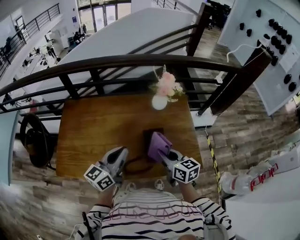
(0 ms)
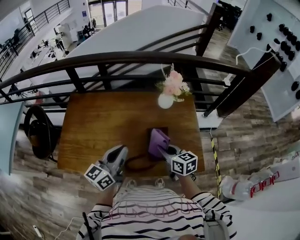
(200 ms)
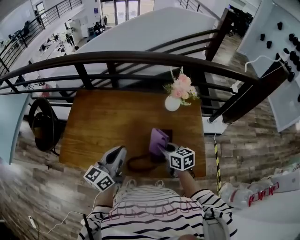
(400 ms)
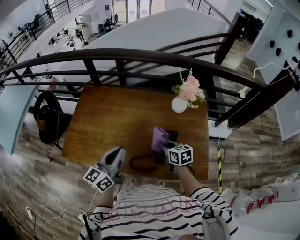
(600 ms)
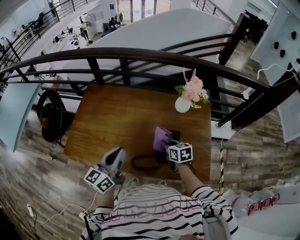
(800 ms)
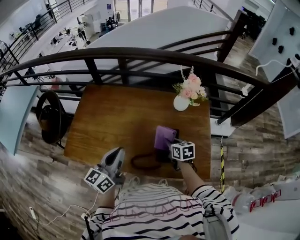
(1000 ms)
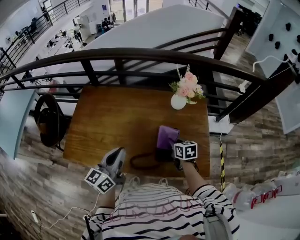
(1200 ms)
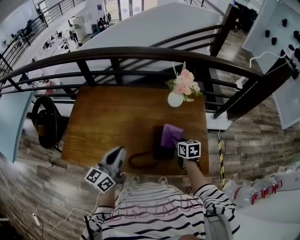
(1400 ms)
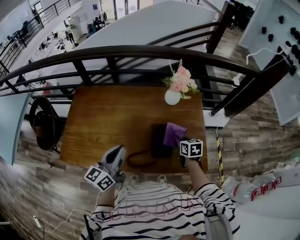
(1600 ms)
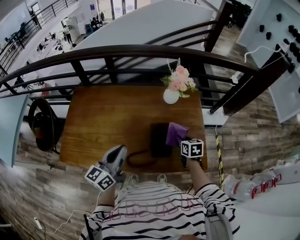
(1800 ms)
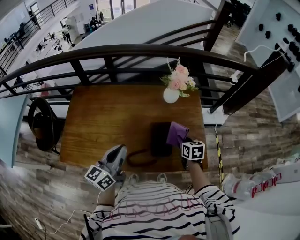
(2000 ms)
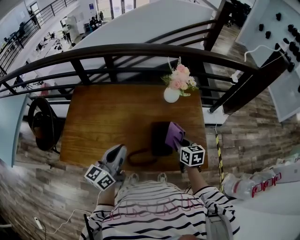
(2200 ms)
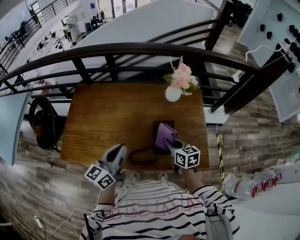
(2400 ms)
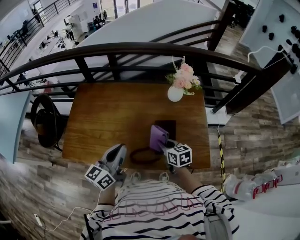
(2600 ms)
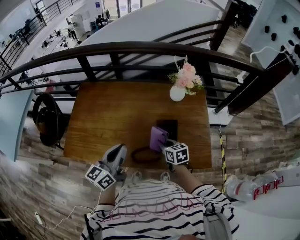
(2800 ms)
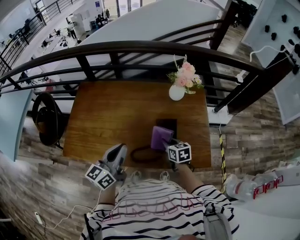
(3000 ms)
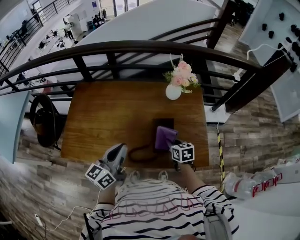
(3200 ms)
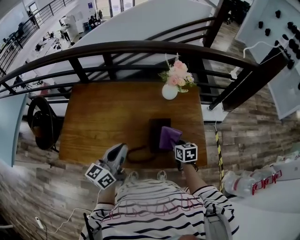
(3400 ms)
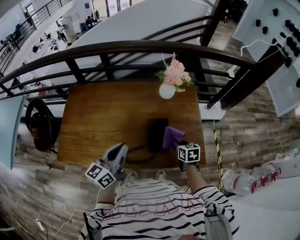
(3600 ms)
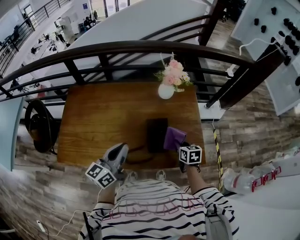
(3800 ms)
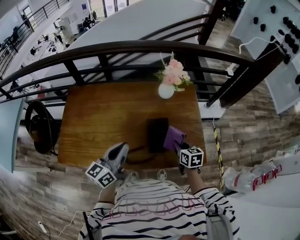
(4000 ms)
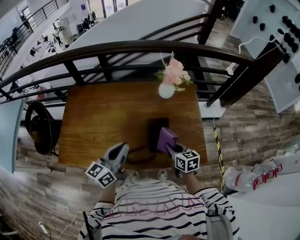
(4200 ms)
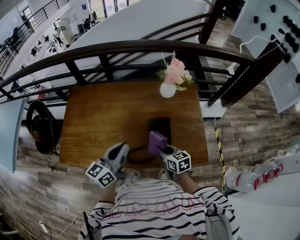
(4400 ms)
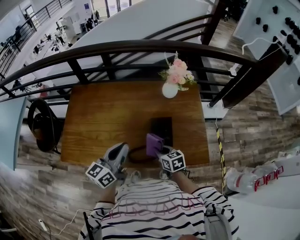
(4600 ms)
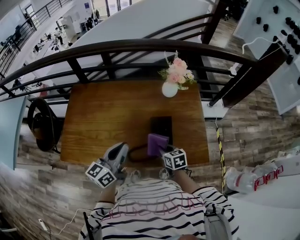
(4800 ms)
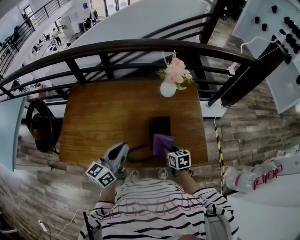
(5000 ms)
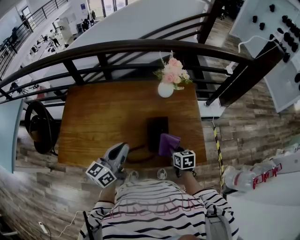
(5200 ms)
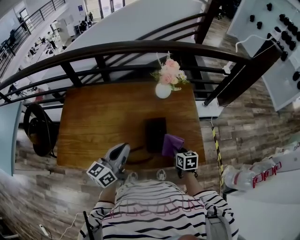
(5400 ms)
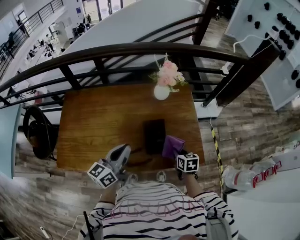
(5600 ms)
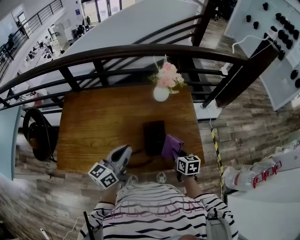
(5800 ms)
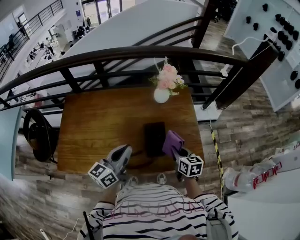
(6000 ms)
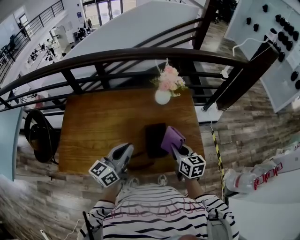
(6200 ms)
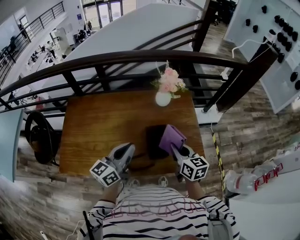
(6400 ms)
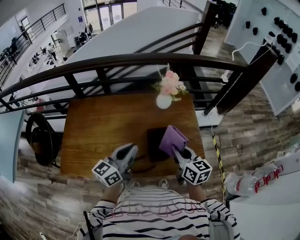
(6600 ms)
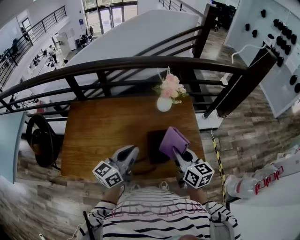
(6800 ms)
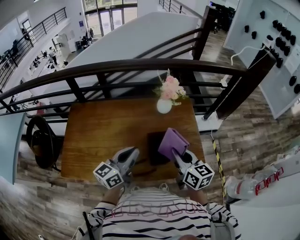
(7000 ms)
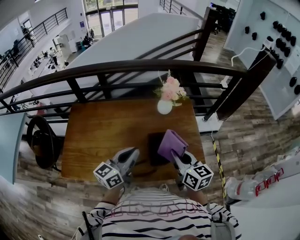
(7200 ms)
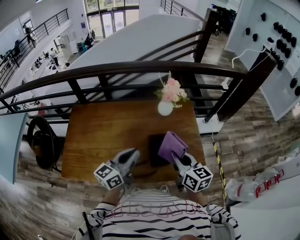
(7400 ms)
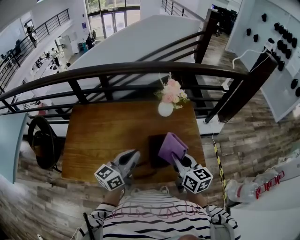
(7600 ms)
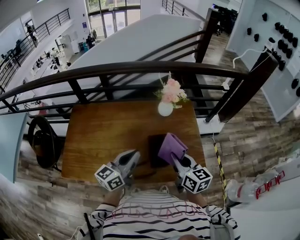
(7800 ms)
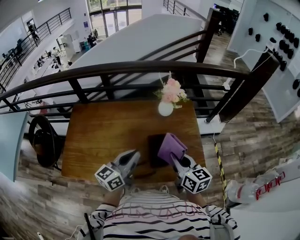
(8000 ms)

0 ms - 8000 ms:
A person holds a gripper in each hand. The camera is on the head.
0 ms - 1600 ms: The right gripper is displaced downward, to the right and forward by about 15 cm, and swivels approximately 20 degrees.
1600 ms - 3200 ms: The right gripper shifts approximately 5 cm to the left.
3200 ms - 4800 ms: The right gripper travels to the right and back again, roughly 10 cm each way.
4800 ms - 6400 ms: The right gripper shifts about 15 cm upward and to the right, and turns by roughly 30 degrees. The left gripper shifts by about 5 cm.
6400 ms - 8000 ms: The right gripper moves upward, approximately 5 cm.

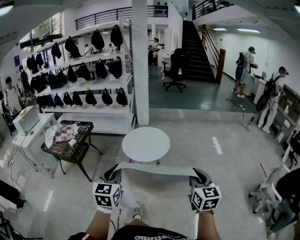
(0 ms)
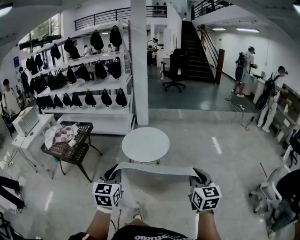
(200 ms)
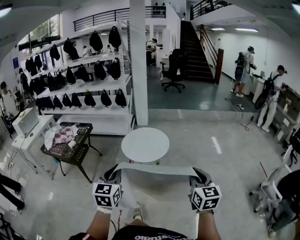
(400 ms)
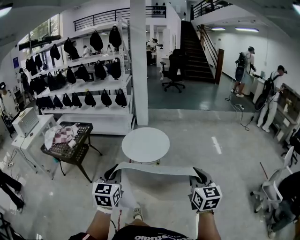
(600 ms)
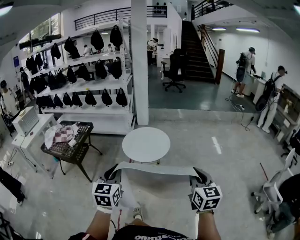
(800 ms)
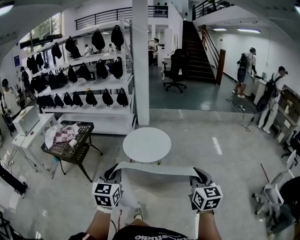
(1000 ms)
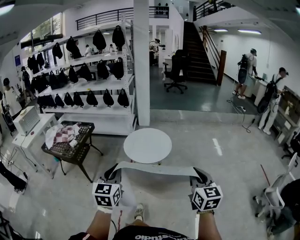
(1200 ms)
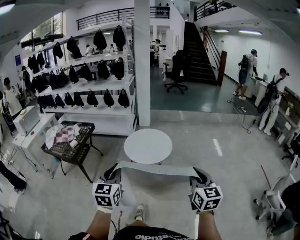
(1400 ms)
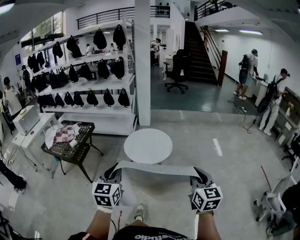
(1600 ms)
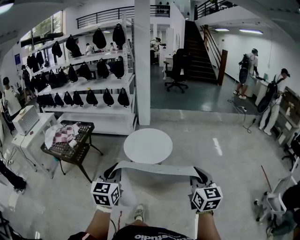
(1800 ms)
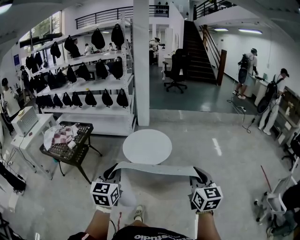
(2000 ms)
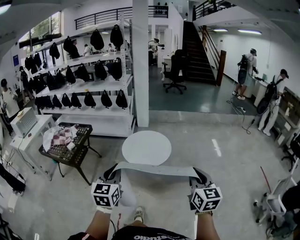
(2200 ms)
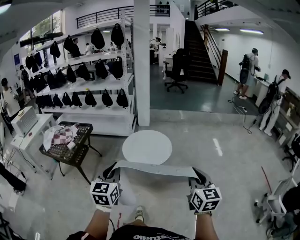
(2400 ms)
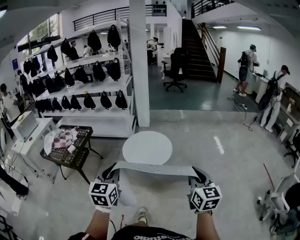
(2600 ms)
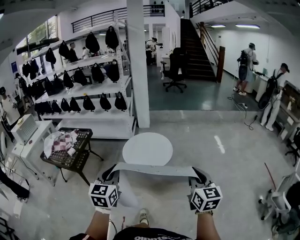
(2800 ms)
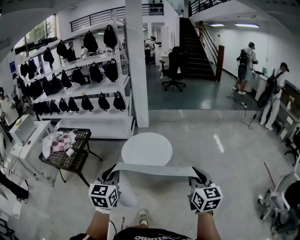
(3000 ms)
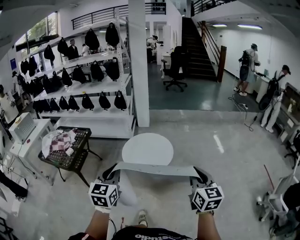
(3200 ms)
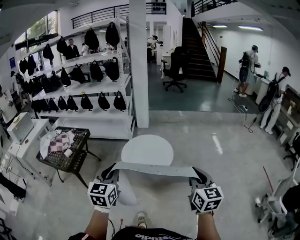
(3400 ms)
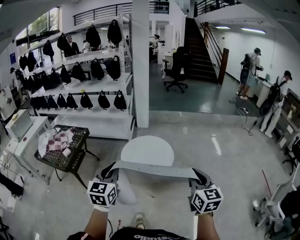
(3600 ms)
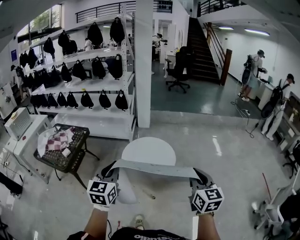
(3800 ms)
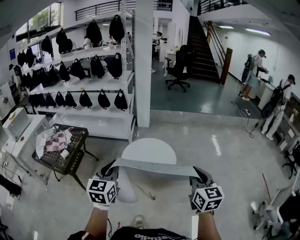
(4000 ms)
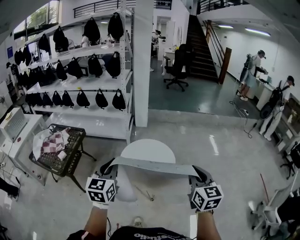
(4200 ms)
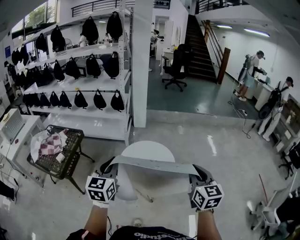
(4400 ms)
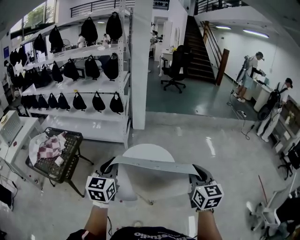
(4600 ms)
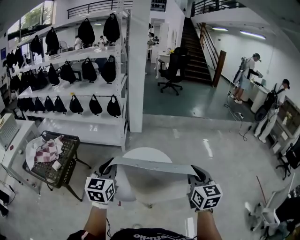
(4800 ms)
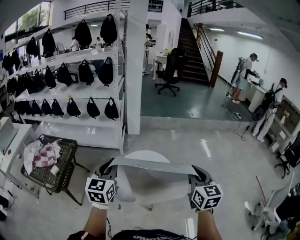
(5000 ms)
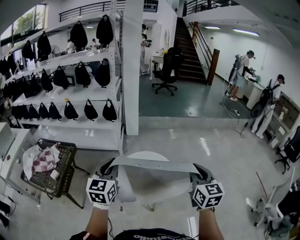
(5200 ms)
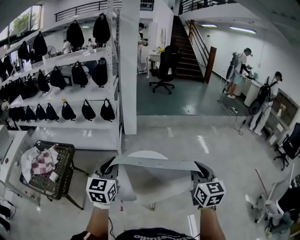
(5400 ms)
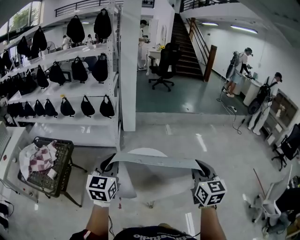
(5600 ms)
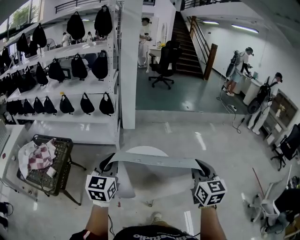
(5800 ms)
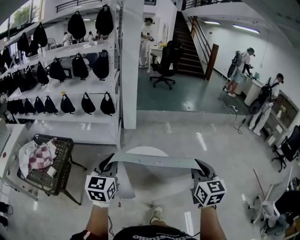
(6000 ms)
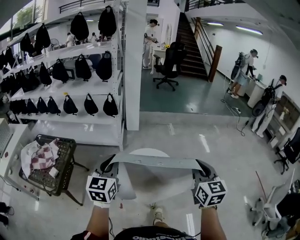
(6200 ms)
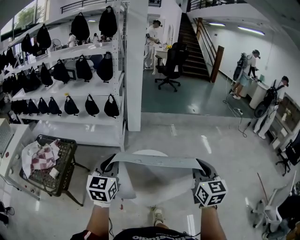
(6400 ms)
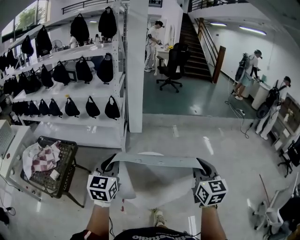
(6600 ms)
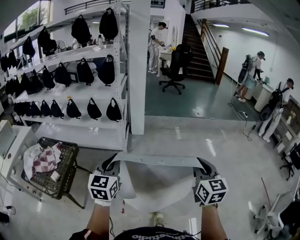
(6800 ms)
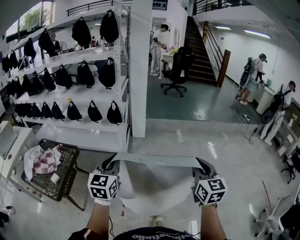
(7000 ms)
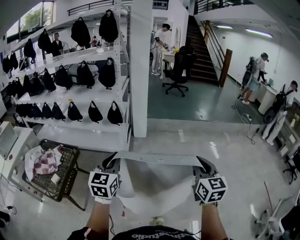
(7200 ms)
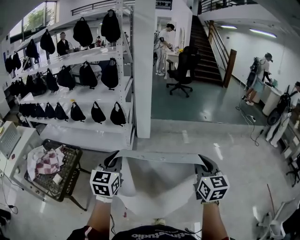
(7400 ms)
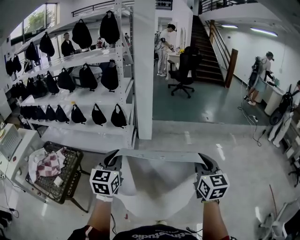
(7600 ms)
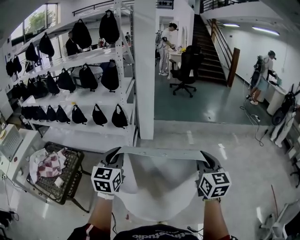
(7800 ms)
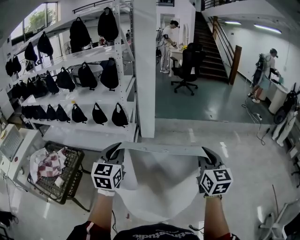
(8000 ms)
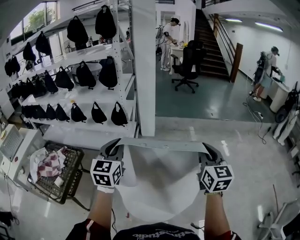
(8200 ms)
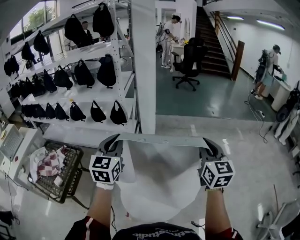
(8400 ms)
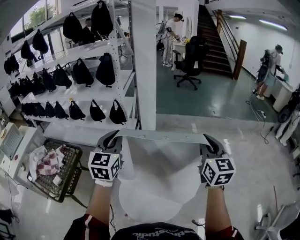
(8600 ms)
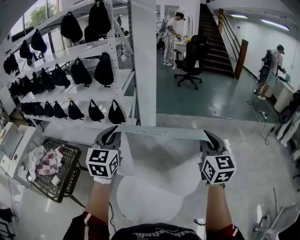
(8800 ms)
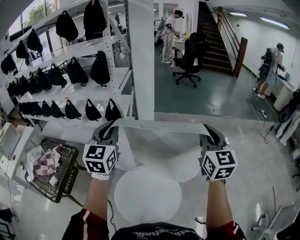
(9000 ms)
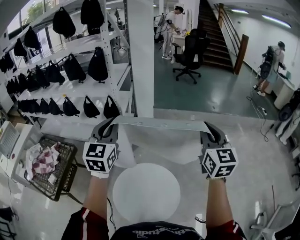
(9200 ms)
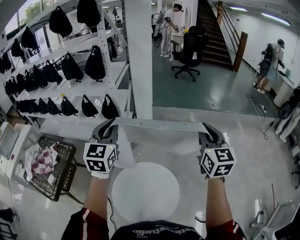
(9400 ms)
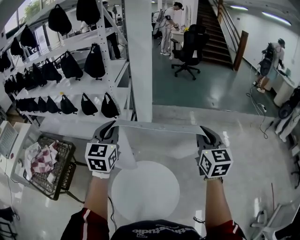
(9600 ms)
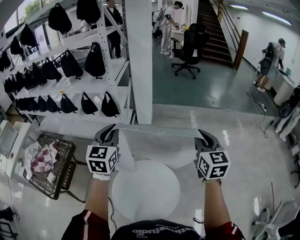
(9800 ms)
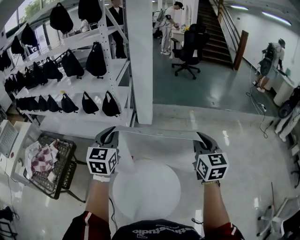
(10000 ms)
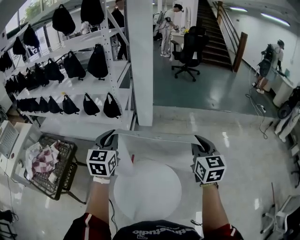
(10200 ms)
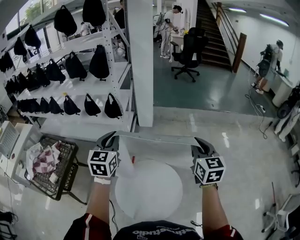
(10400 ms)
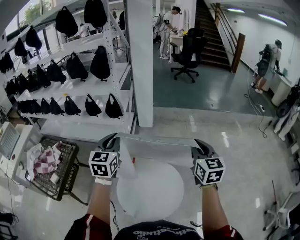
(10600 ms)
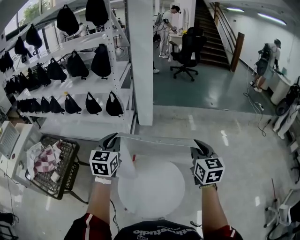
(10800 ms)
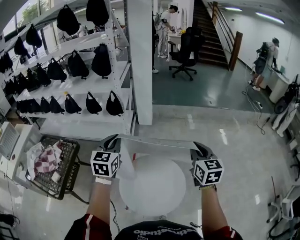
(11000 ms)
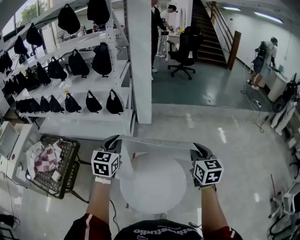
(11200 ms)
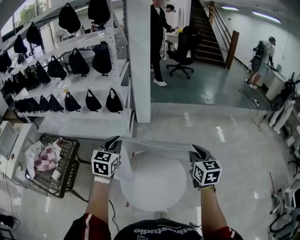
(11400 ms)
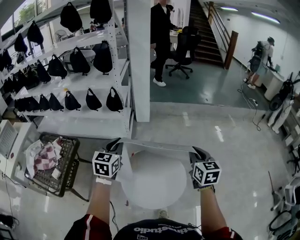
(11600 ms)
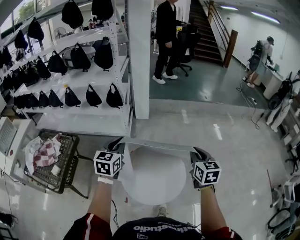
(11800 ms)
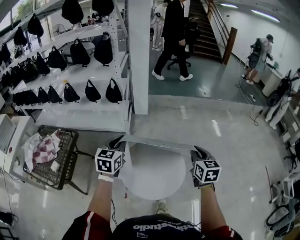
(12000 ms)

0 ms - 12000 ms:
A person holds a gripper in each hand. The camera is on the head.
0 ms - 1600 ms: The grippers stay close to where they were, moving slightly.
1600 ms - 3000 ms: The two grippers go about 10 cm forward.
3000 ms - 4400 ms: Both grippers travel together forward, some 25 cm.
4400 ms - 6000 ms: Both grippers travel together forward, approximately 10 cm.
6000 ms - 7600 ms: The grippers both shift forward by about 20 cm.
7600 ms - 9000 ms: The right gripper goes roughly 20 cm forward. Meanwhile the left gripper moves forward and upward, roughly 20 cm.
9000 ms - 10400 ms: The grippers both shift downward by roughly 10 cm.
10400 ms - 12000 ms: Both grippers travel together backward and downward, about 20 cm.

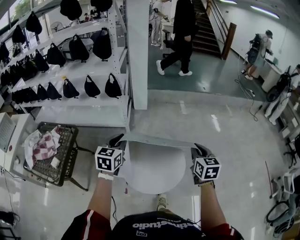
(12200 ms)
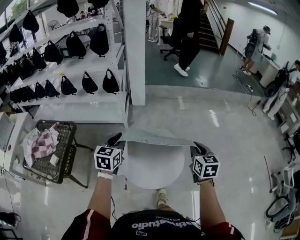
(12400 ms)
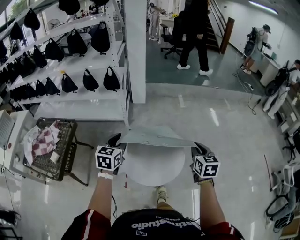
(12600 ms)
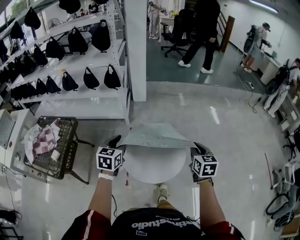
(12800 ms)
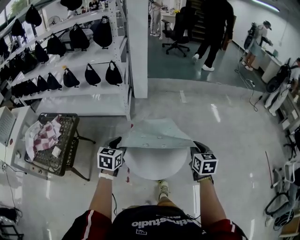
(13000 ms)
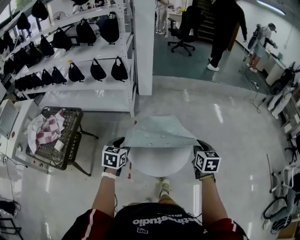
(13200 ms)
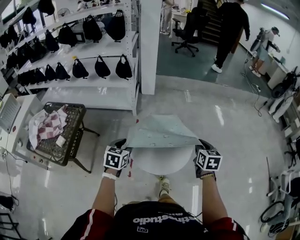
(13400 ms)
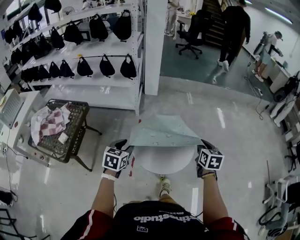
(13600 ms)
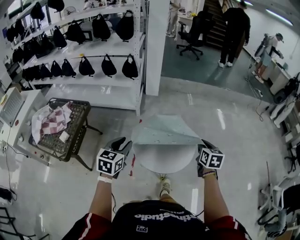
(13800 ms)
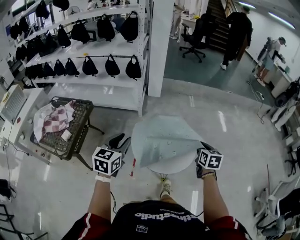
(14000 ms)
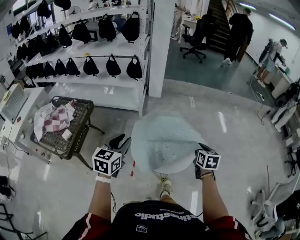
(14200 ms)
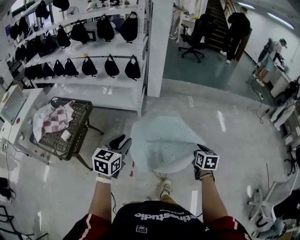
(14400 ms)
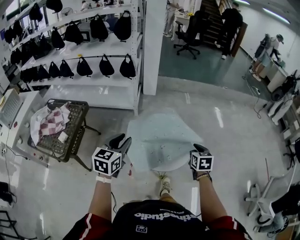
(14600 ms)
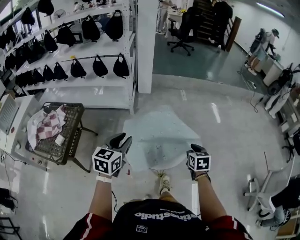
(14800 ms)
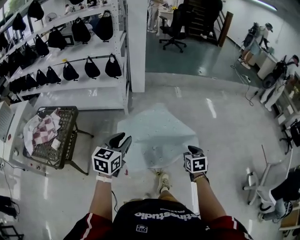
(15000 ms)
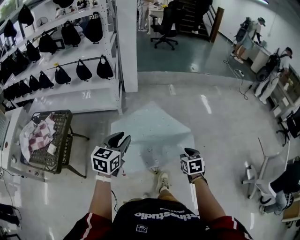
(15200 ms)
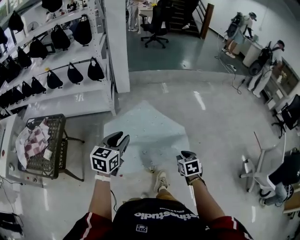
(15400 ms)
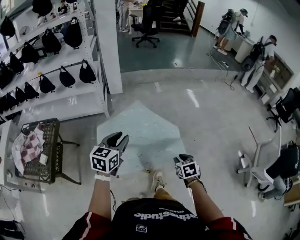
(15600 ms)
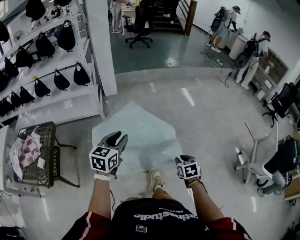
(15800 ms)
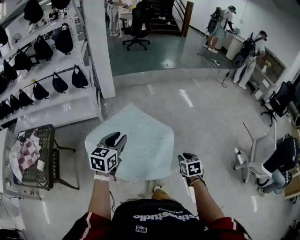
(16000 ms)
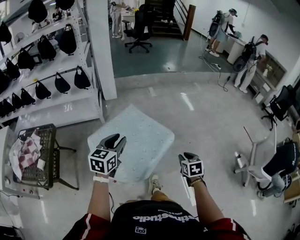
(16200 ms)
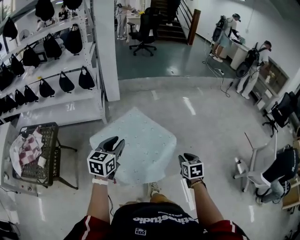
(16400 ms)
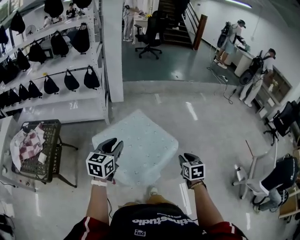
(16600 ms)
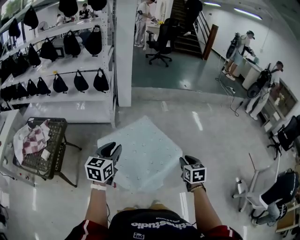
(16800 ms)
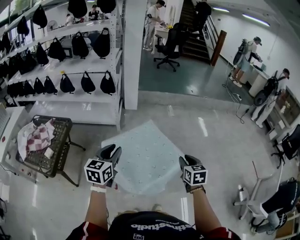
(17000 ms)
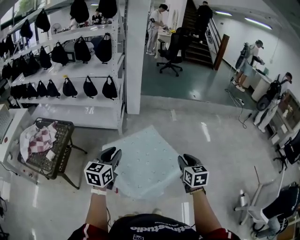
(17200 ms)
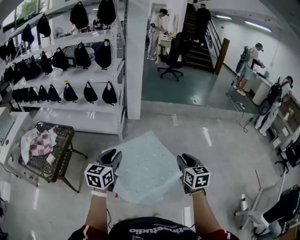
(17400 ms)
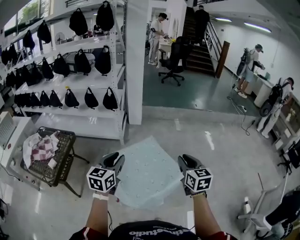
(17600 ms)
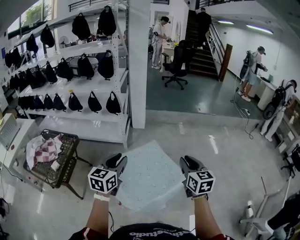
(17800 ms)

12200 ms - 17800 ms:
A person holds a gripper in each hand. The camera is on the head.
12200 ms - 13600 ms: The left gripper travels backward and downward by roughly 20 cm, and opens its fingers. Meanwhile the right gripper moves backward and downward, approximately 10 cm.
13600 ms - 15000 ms: The right gripper shifts approximately 10 cm downward and backward. Meanwhile the left gripper travels upward by about 10 cm.
15000 ms - 16400 ms: The left gripper heads to the right, covering approximately 10 cm, while the right gripper heads to the right and backward, covering approximately 15 cm.
16400 ms - 17800 ms: The left gripper goes about 10 cm upward, while the right gripper shifts about 25 cm upward and forward, and changes its angle by some 30 degrees.
